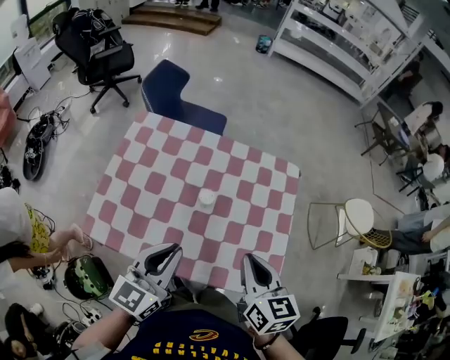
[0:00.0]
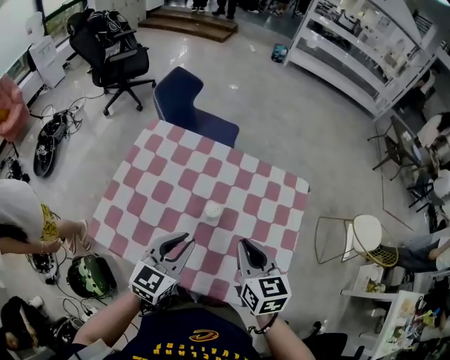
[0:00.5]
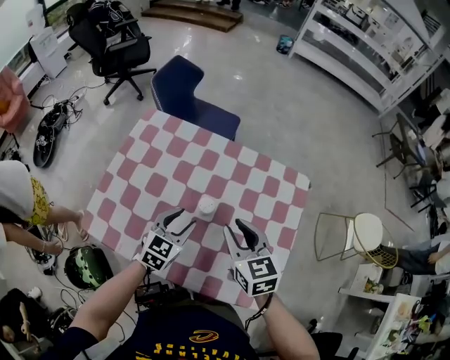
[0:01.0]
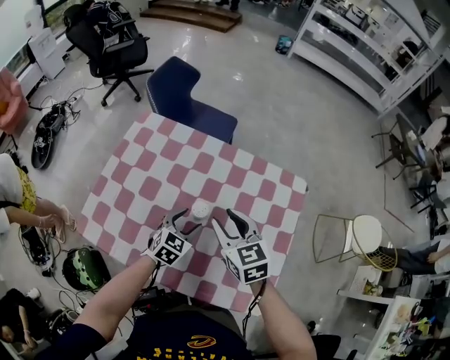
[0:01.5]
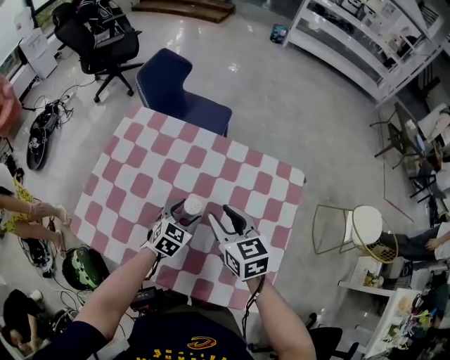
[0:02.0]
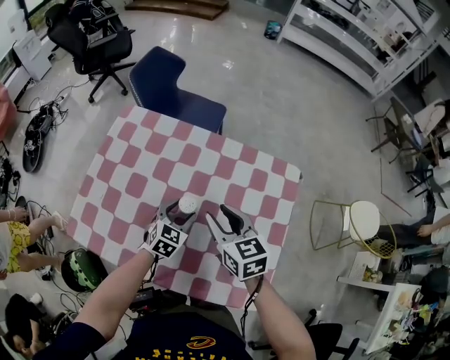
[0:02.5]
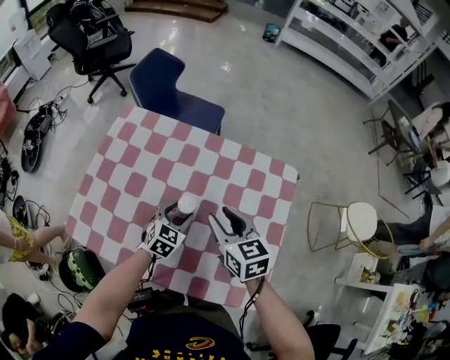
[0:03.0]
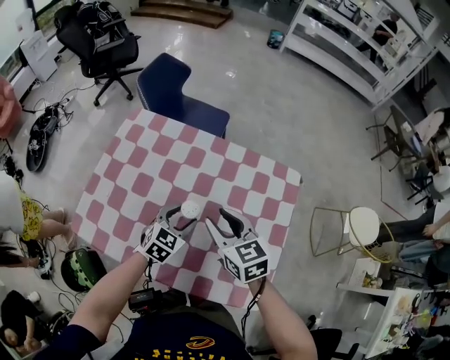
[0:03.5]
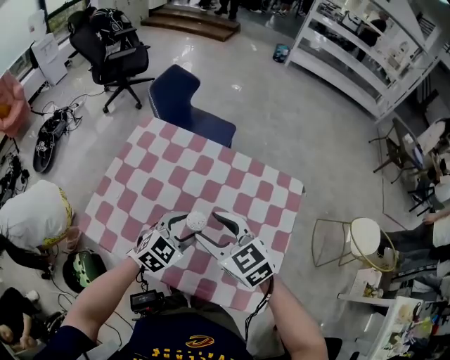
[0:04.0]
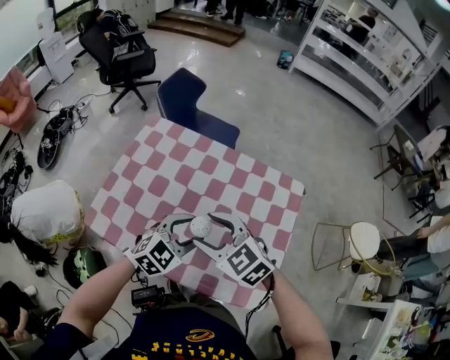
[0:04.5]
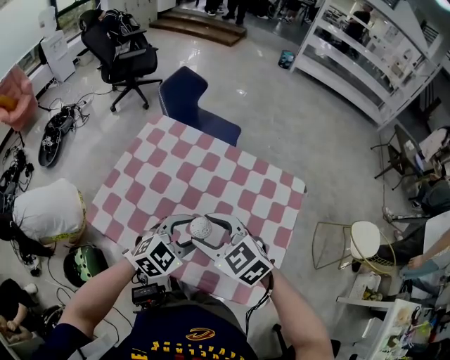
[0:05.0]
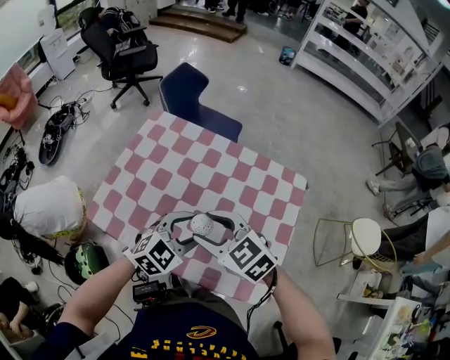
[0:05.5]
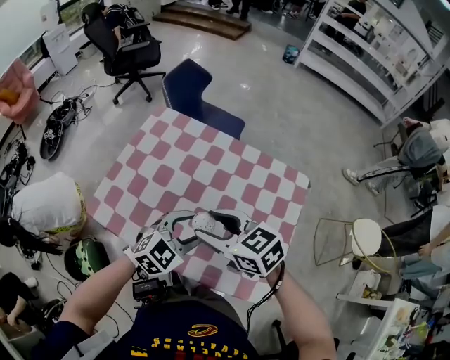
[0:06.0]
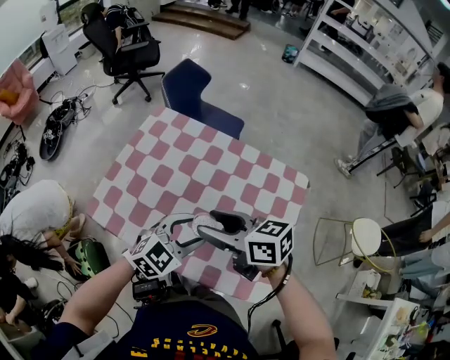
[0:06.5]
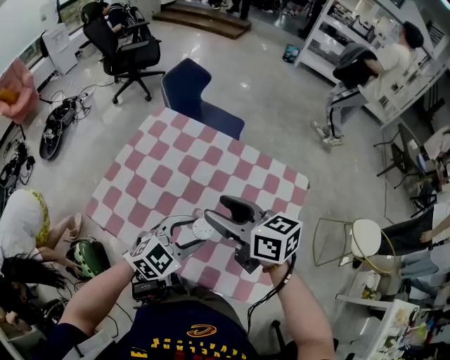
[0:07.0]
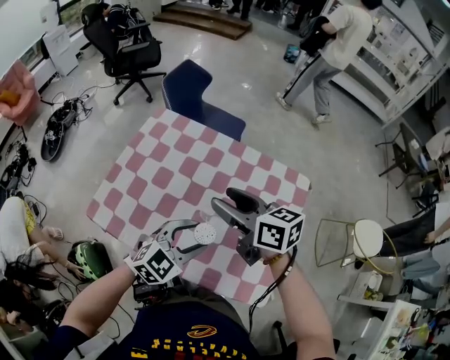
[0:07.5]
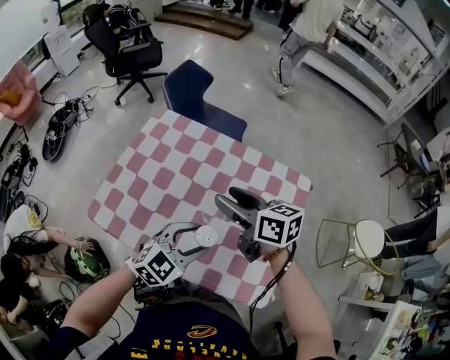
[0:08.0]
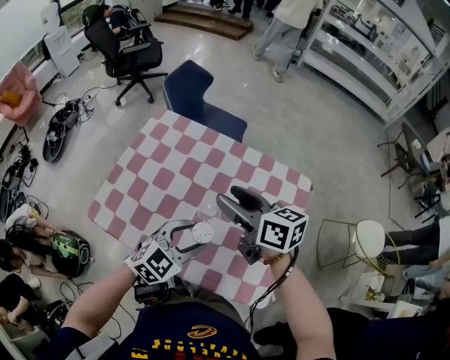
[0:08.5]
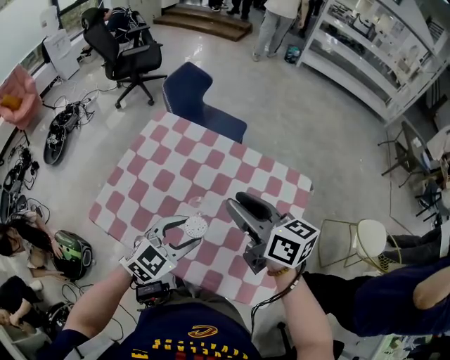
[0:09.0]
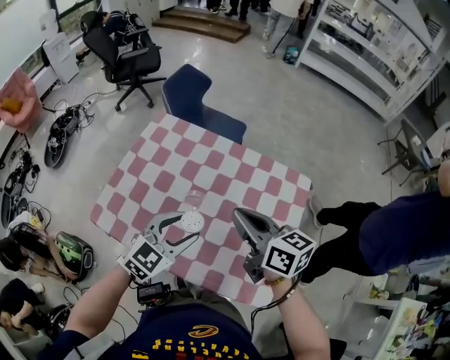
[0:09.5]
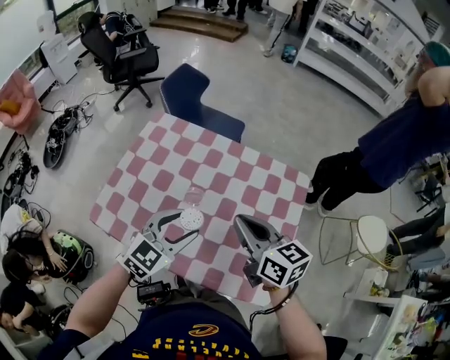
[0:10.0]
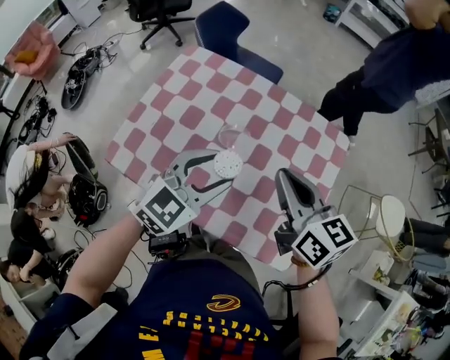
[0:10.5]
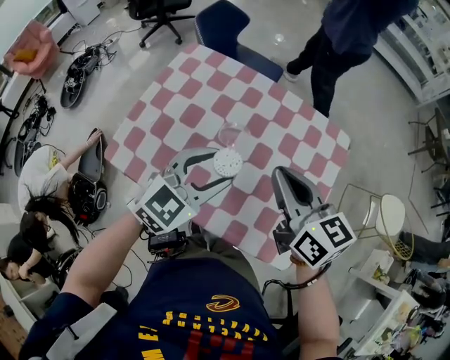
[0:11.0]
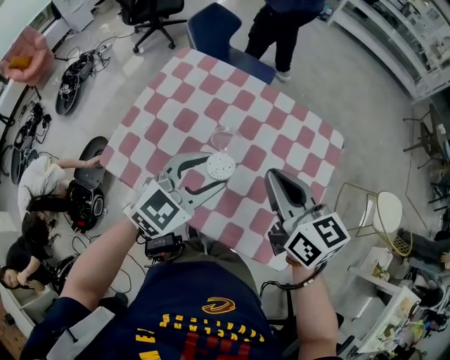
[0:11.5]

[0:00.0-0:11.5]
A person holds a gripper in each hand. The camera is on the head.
0:00.0 to 0:02.0: The left gripper heads downward and forward, covering some 30 cm, tips its fingers downward by approximately 30 degrees, and opens up. Meanwhile the right gripper travels forward and downward by some 20 cm, rotates some 20 degrees, and opens.
0:02.0 to 0:04.0: The right gripper is displaced upward, to the left and backward by some 10 cm, and rotates some 30 degrees; the left gripper travels upward and backward by some 15 cm.
0:04.0 to 0:06.0: The left gripper heads backward, covering some 5 cm, while the right gripper moves approximately 5 cm.
0:06.0 to 0:07.5: The right gripper moves forward, some 10 cm, and rotates some 30 degrees.
0:07.5 to 0:09.5: The left gripper changes place by approximately 5 cm, while the right gripper changes place by approximately 5 cm, and closes up.
0:09.5 to 0:11.5: The grippers make only small movements.

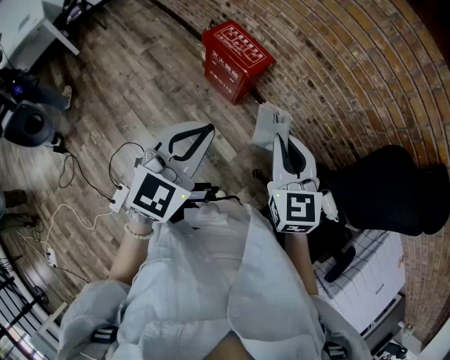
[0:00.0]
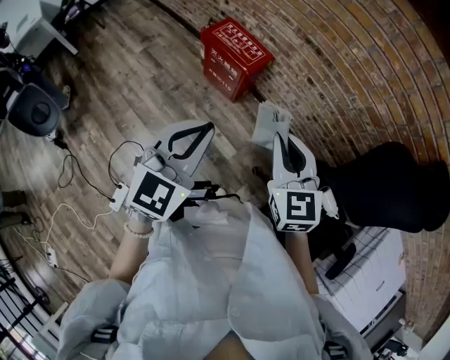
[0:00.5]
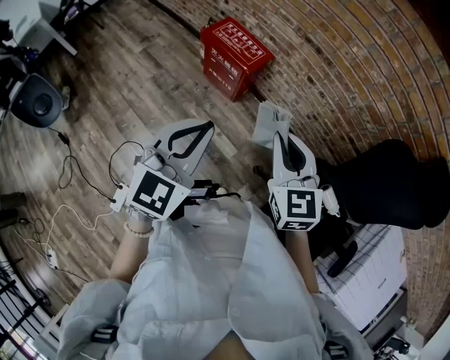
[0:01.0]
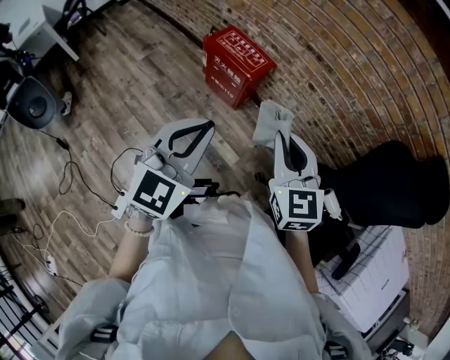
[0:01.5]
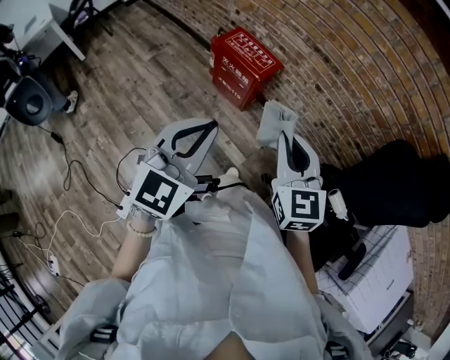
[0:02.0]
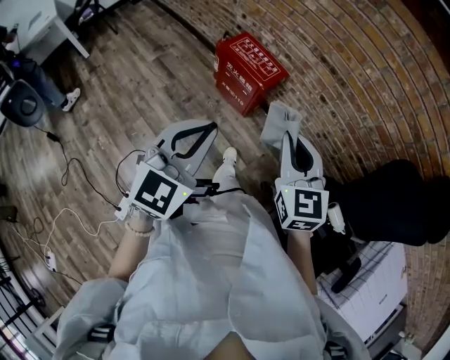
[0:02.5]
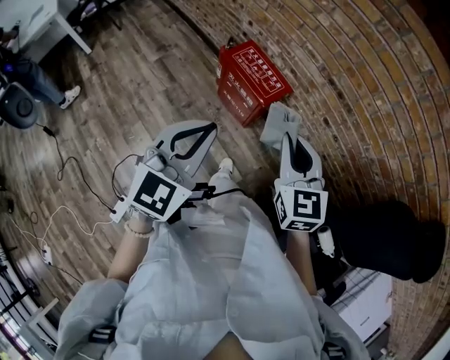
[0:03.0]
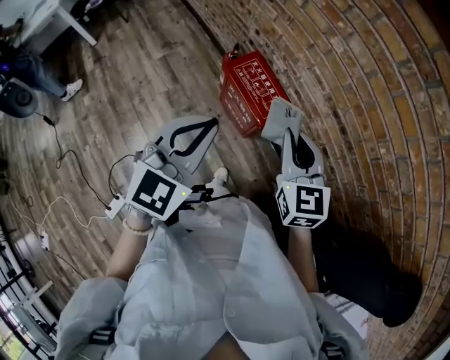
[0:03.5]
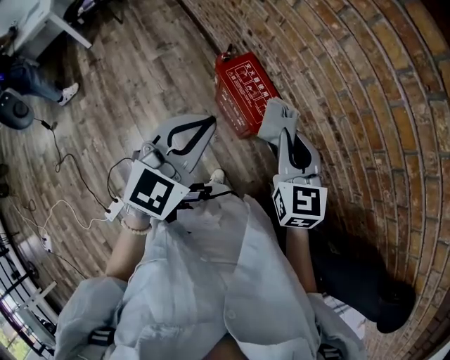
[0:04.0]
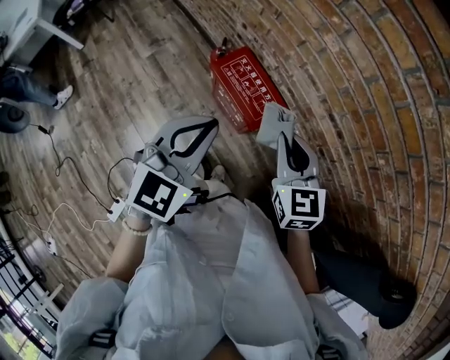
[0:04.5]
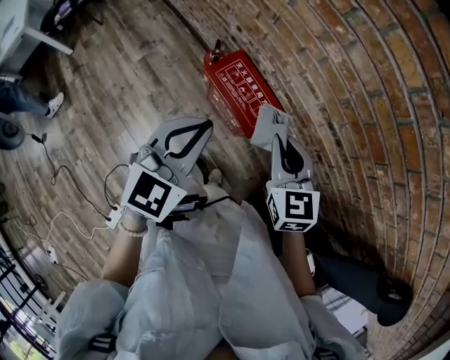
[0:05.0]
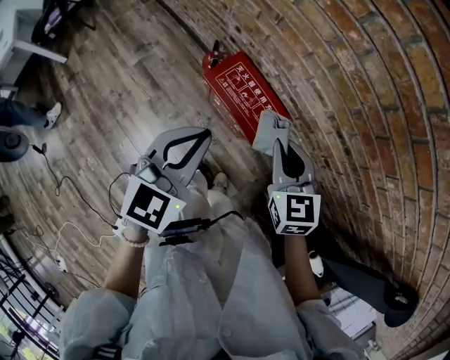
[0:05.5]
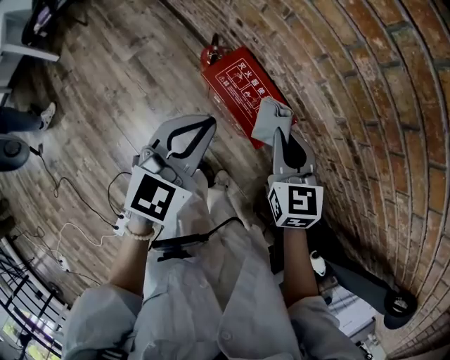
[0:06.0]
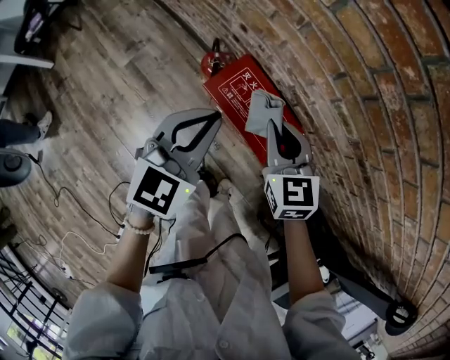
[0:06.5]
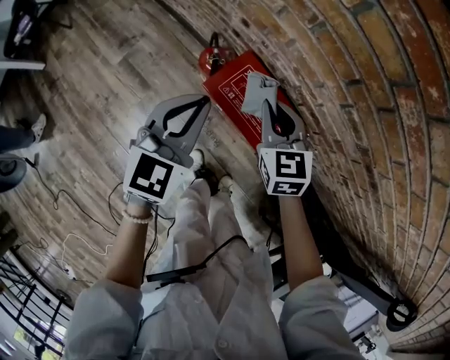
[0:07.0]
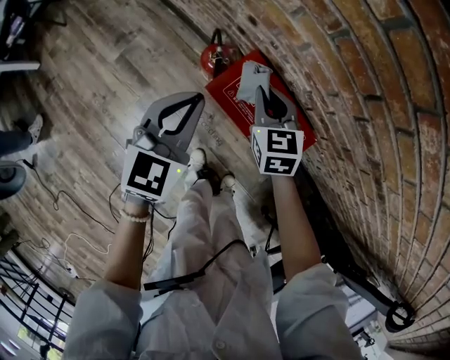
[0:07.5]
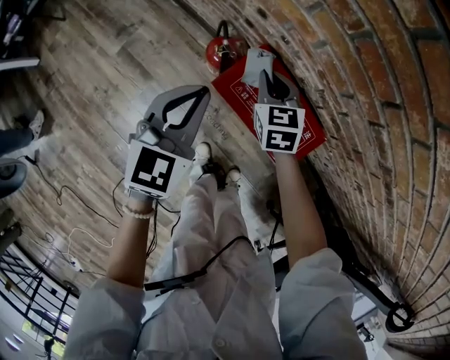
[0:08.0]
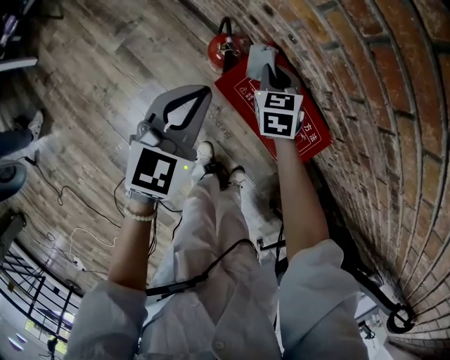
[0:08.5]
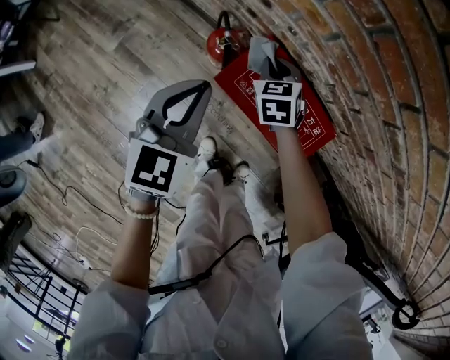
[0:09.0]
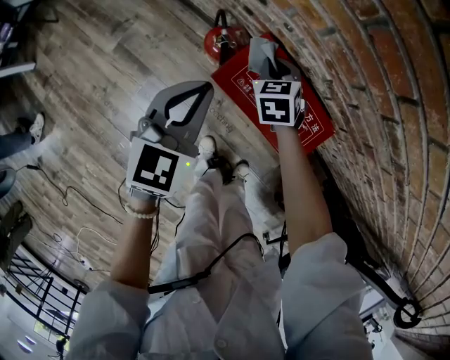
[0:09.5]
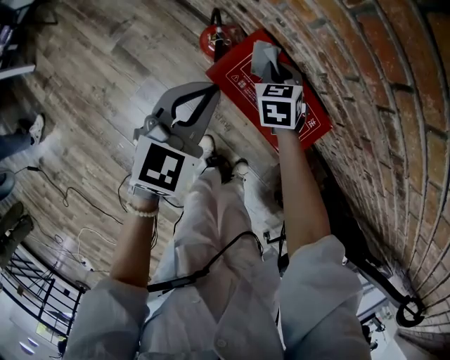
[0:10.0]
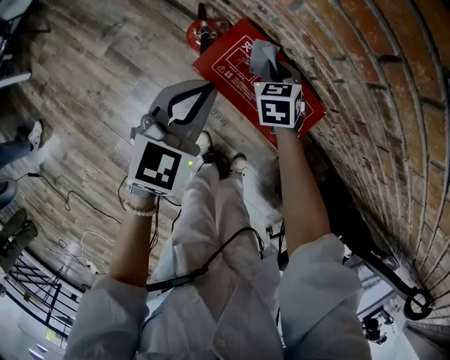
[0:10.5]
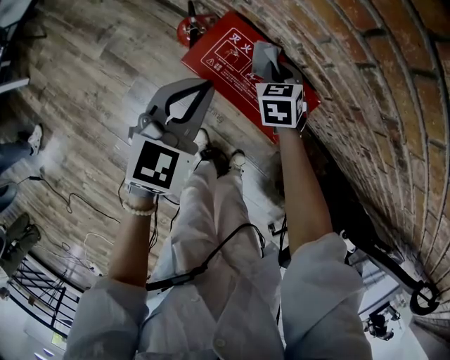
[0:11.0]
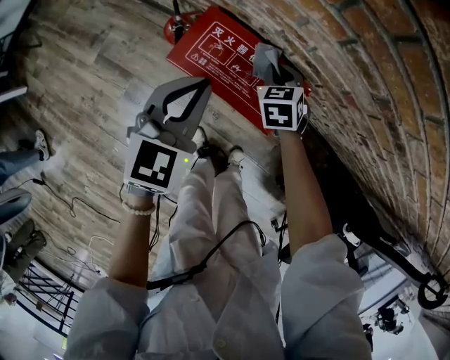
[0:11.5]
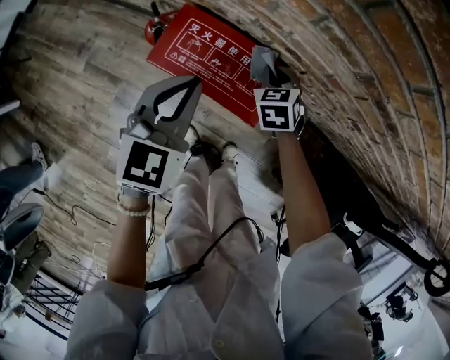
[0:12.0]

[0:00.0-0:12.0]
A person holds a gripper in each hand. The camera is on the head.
0:00.0 to 0:02.0: Both grippers move to the left, roughly 5 cm.
0:02.0 to 0:04.0: Both grippers move forward, some 35 cm.
0:04.0 to 0:06.0: The right gripper moves downward and forward, some 15 cm. Meanwhile the left gripper is displaced forward and downward by some 20 cm.
0:06.0 to 0:08.0: Both grippers travel together downward, forward and to the left, roughly 30 cm.
0:08.0 to 0:10.0: The right gripper shifts roughly 5 cm downward.
0:10.0 to 0:12.0: The left gripper is displaced to the right by about 10 cm; the right gripper goes roughly 20 cm to the right.

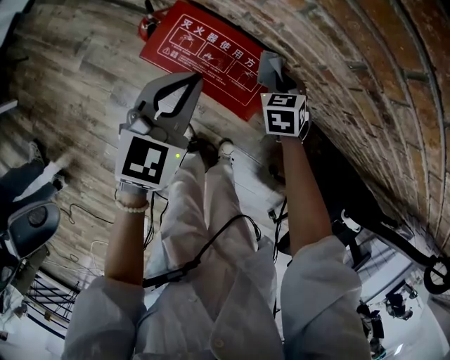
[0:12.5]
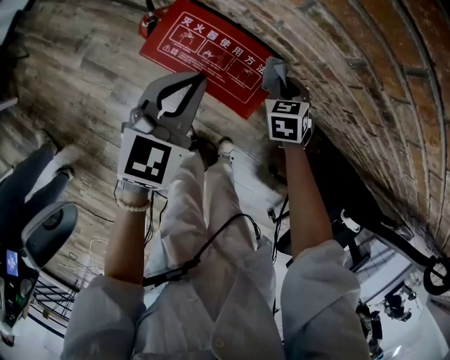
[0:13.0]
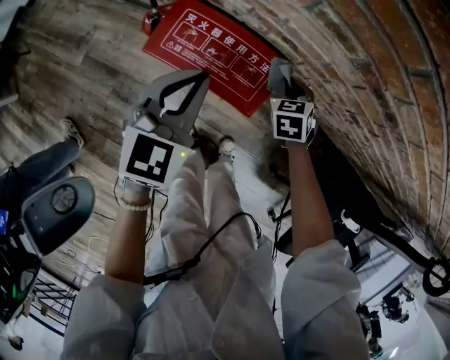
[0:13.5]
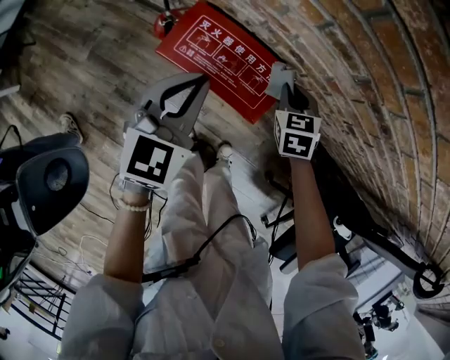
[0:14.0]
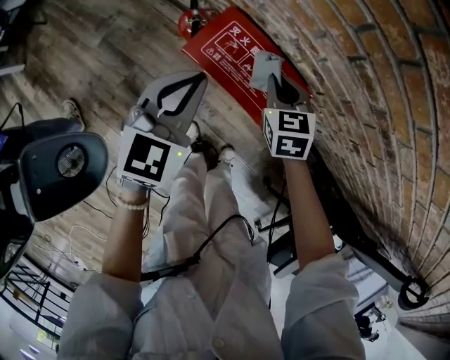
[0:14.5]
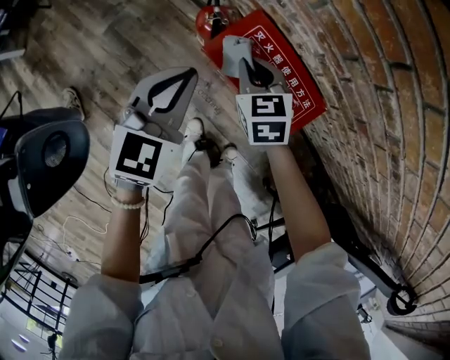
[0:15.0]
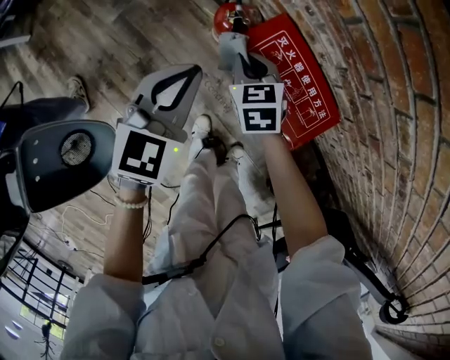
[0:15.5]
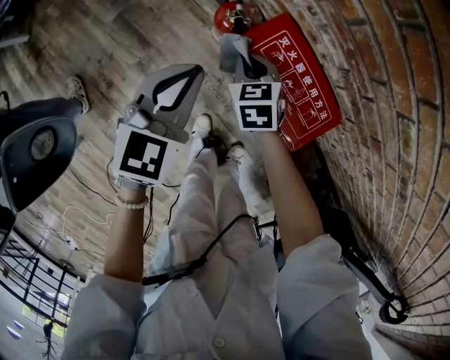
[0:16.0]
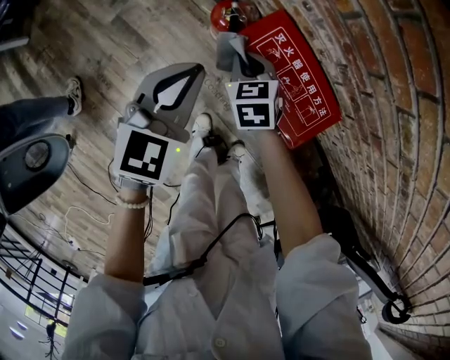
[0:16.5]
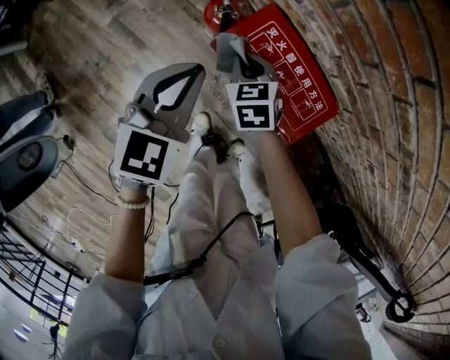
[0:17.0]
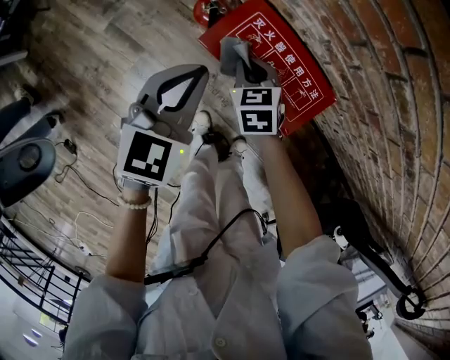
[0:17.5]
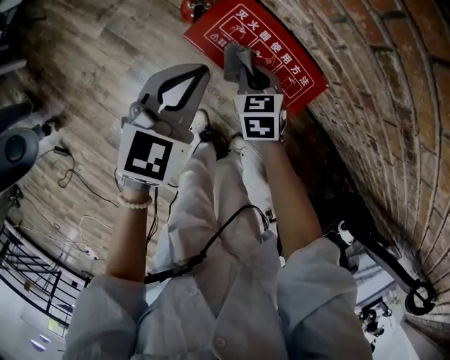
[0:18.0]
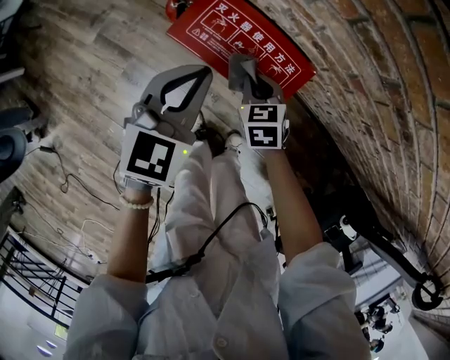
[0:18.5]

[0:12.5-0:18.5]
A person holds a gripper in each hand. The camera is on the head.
0:12.5 to 0:14.5: The left gripper travels to the left by approximately 10 cm. Meanwhile the right gripper shifts about 15 cm to the left and upward.
0:14.5 to 0:16.5: The right gripper is displaced to the left and downward by roughly 20 cm. Meanwhile the left gripper is displaced to the left and downward by approximately 10 cm.
0:16.5 to 0:18.5: The left gripper goes some 15 cm to the right. The right gripper heads to the right and backward, covering about 20 cm.
